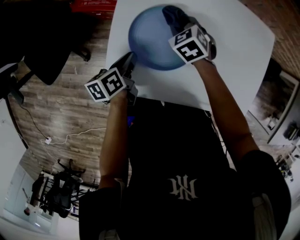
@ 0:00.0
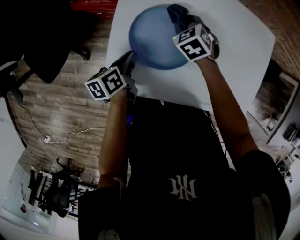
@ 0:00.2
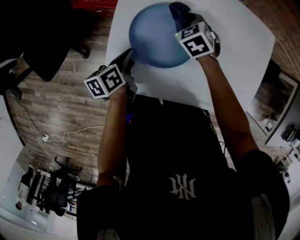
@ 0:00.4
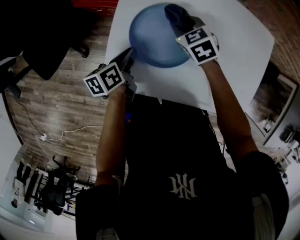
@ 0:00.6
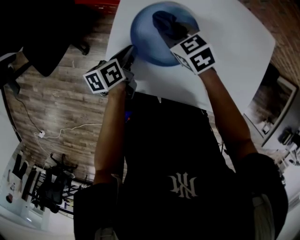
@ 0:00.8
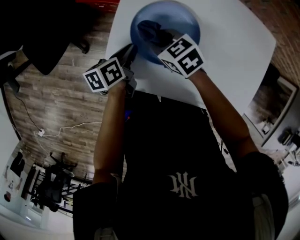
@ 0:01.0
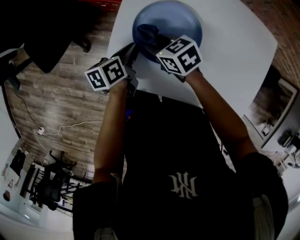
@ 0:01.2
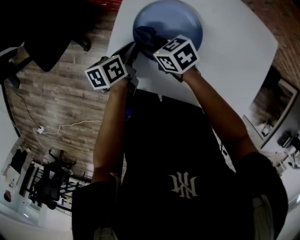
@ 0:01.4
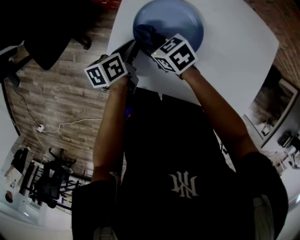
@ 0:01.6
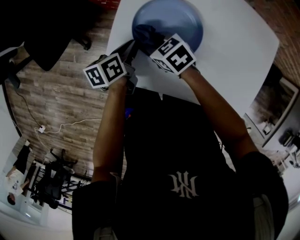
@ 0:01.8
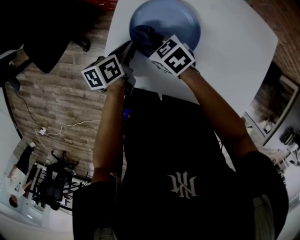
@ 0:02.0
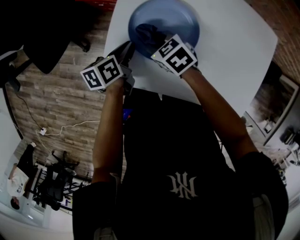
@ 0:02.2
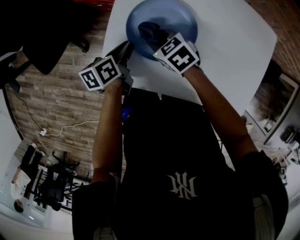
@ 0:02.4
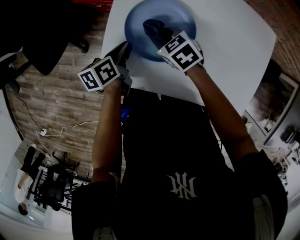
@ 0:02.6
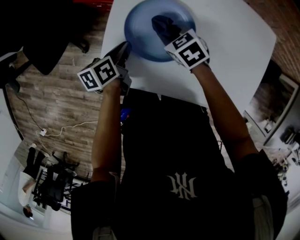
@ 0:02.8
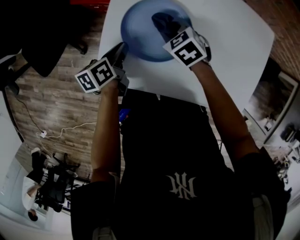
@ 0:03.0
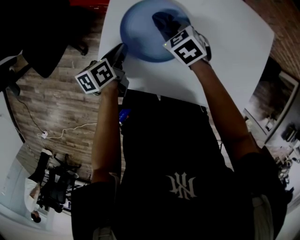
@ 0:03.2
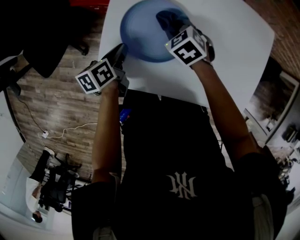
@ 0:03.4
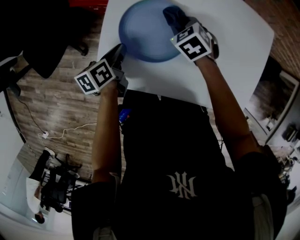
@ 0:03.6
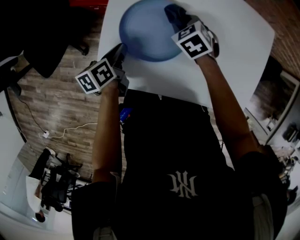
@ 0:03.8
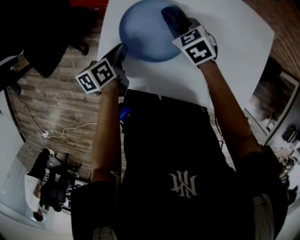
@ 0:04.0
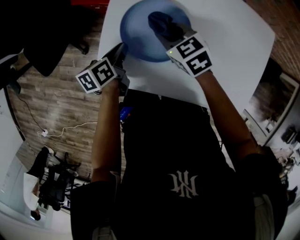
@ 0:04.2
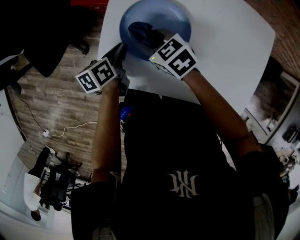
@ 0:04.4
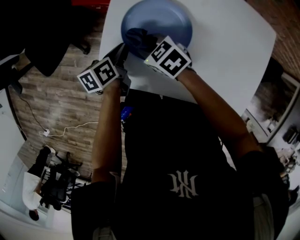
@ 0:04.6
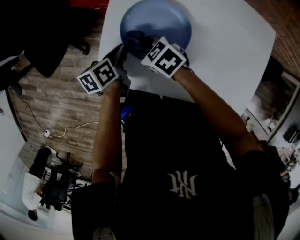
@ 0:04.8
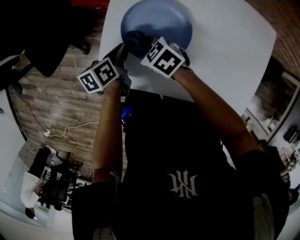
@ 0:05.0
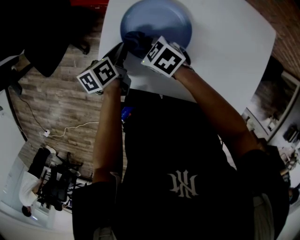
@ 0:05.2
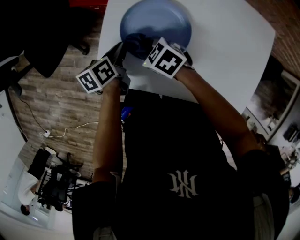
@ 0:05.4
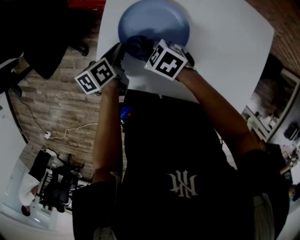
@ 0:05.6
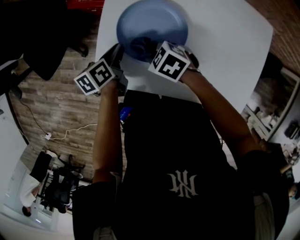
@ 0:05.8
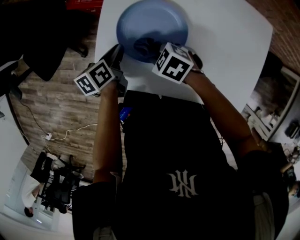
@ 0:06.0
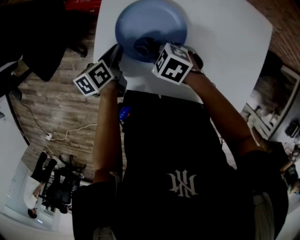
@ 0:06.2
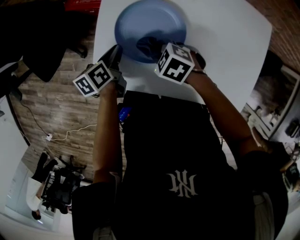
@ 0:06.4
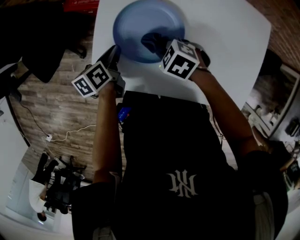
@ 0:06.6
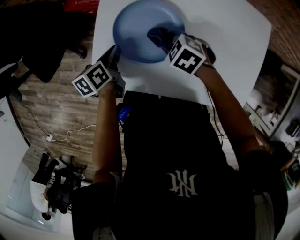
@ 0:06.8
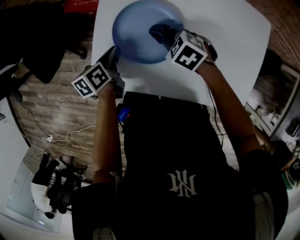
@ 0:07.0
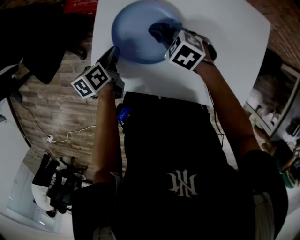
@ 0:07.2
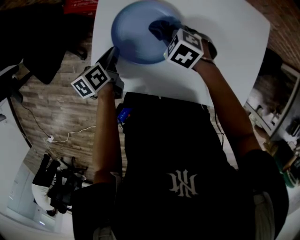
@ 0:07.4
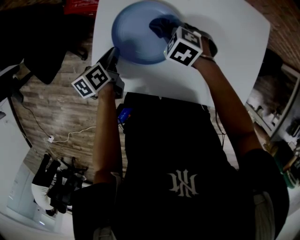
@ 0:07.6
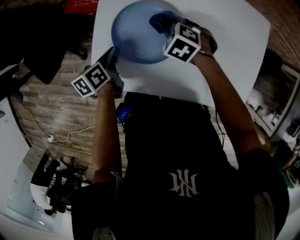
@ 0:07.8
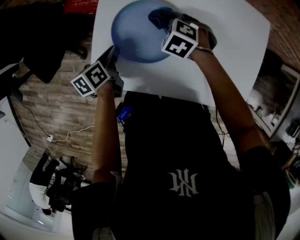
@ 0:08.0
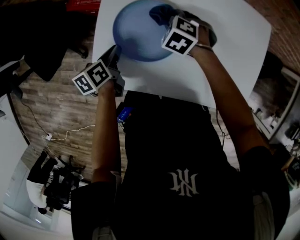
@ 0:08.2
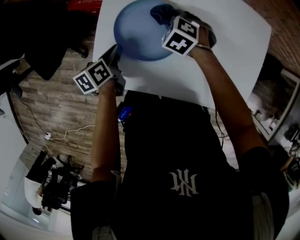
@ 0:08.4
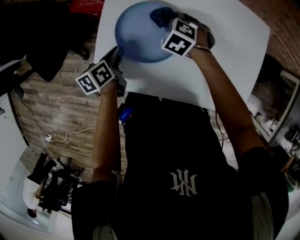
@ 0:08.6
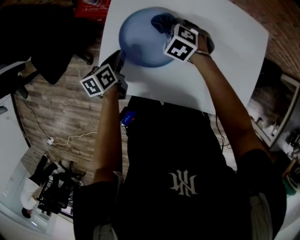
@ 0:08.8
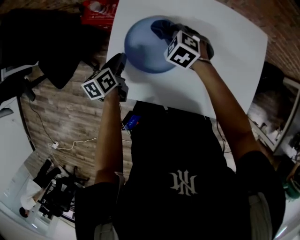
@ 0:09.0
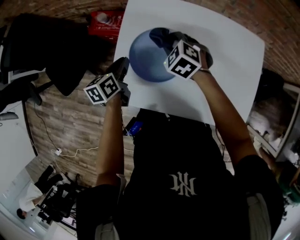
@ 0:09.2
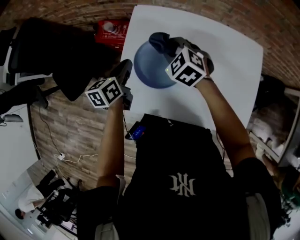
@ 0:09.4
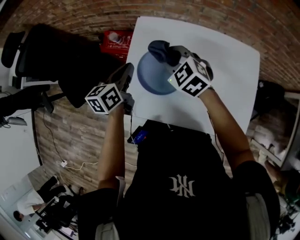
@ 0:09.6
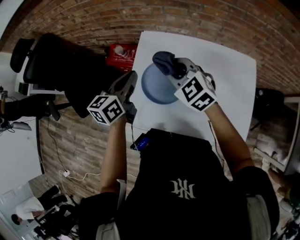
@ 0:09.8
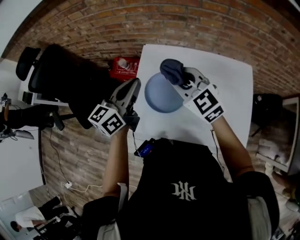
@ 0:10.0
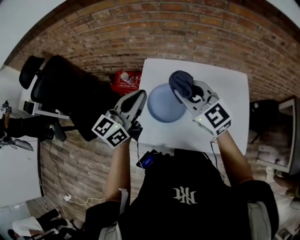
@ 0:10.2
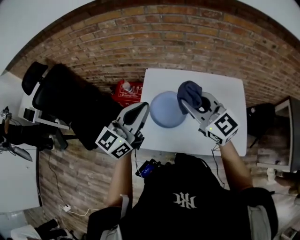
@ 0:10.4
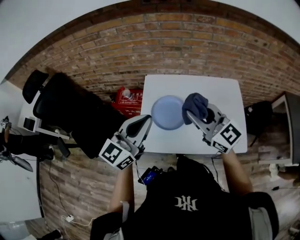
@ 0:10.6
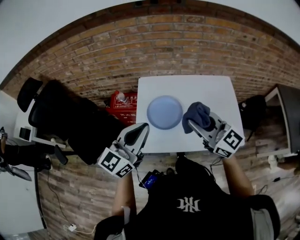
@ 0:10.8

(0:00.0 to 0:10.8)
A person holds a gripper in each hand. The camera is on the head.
0:00.0 - 0:01.6: The right gripper moves roughly 20 cm, and swivels roughly 40 degrees.
0:01.6 - 0:03.0: The right gripper travels to the right by about 10 cm, and rotates roughly 20 degrees.
0:03.0 - 0:04.6: The right gripper heads to the left, covering approximately 10 cm.
0:04.6 - 0:06.2: The right gripper is displaced backward by roughly 5 cm.
0:06.2 - 0:07.8: The right gripper is displaced to the right and forward by some 10 cm, and swivels some 20 degrees.
0:07.8 - 0:09.2: Both grippers travel together upward, approximately 10 cm.
0:09.2 - 0:10.8: The grippers both shift upward and backward by approximately 40 cm. The left gripper points its fingers some 40 degrees further upward. The right gripper angles its fingers upward, by approximately 50 degrees.

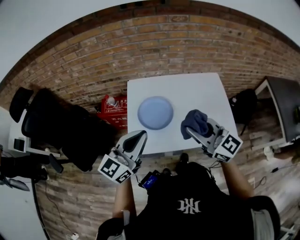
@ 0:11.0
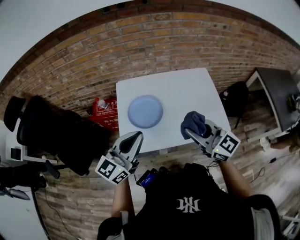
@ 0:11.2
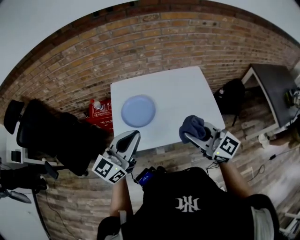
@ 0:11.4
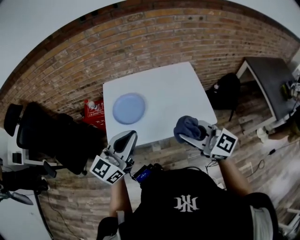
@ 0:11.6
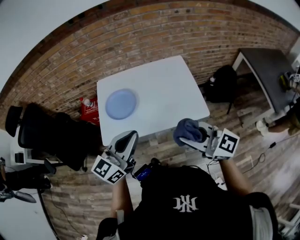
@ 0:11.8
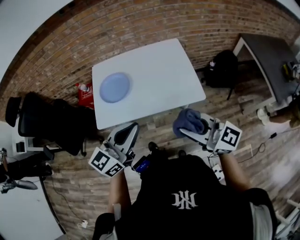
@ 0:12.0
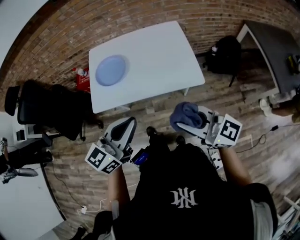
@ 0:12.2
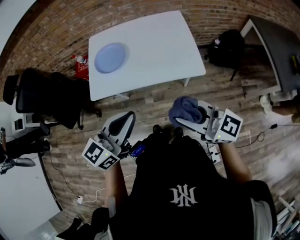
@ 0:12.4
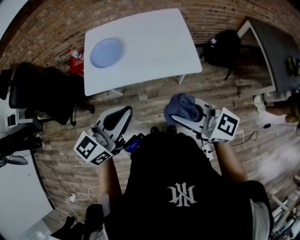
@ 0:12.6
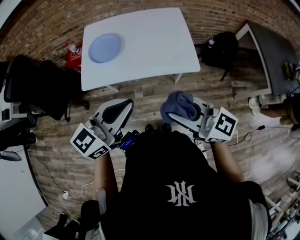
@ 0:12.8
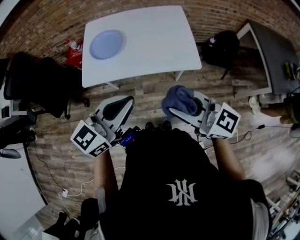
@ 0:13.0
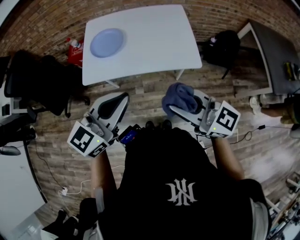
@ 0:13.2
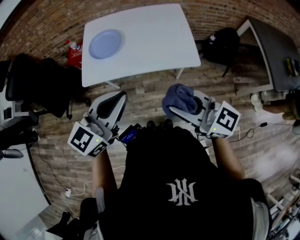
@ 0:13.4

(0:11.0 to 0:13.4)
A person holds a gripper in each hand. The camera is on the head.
0:11.0 - 0:12.2: The left gripper travels to the right and backward by about 30 cm; the right gripper shifts approximately 35 cm backward and to the right.
0:12.2 - 0:13.4: The grippers move only a little.

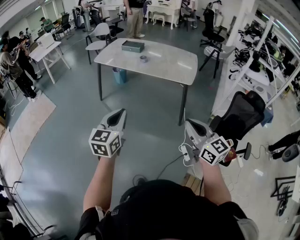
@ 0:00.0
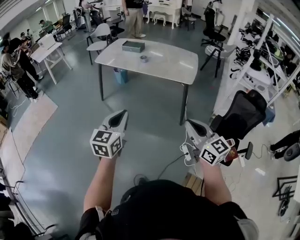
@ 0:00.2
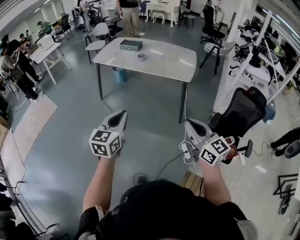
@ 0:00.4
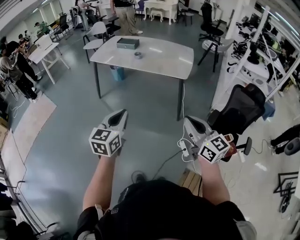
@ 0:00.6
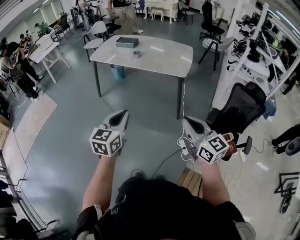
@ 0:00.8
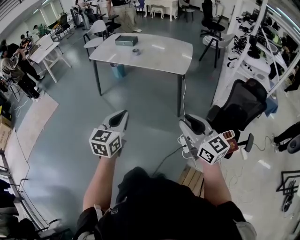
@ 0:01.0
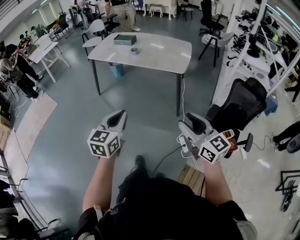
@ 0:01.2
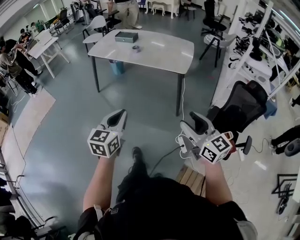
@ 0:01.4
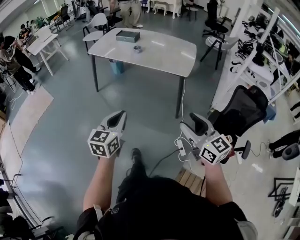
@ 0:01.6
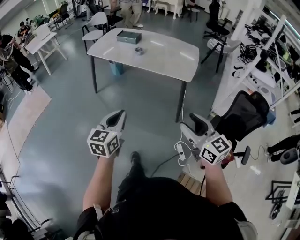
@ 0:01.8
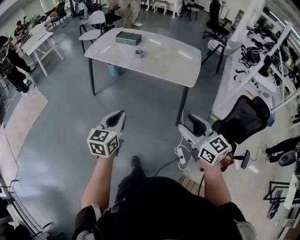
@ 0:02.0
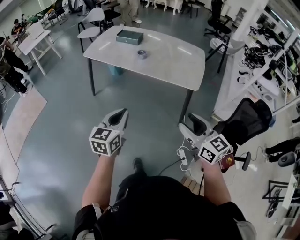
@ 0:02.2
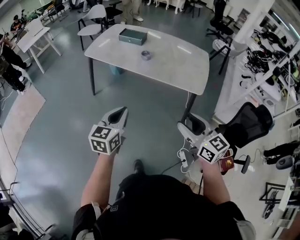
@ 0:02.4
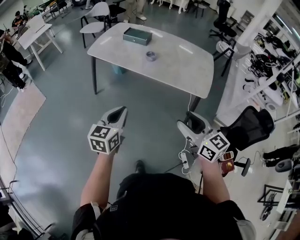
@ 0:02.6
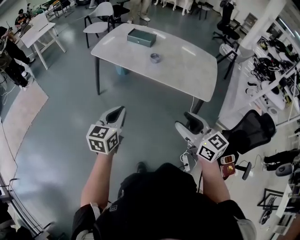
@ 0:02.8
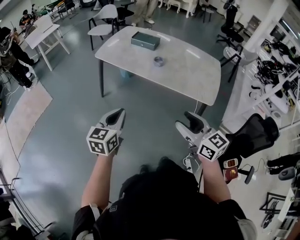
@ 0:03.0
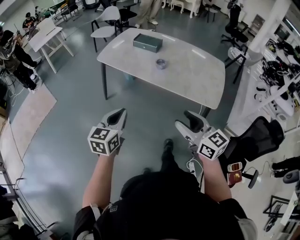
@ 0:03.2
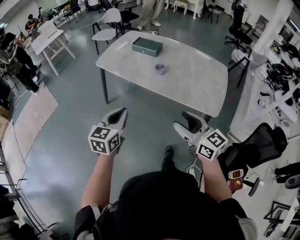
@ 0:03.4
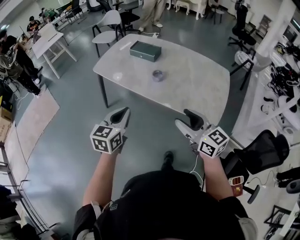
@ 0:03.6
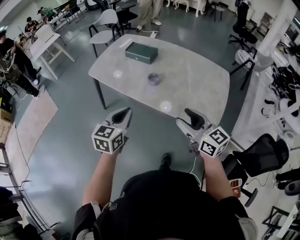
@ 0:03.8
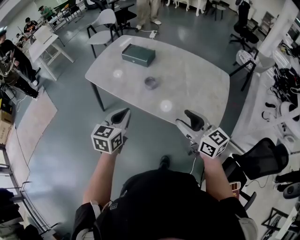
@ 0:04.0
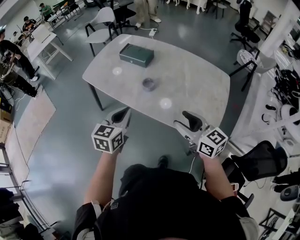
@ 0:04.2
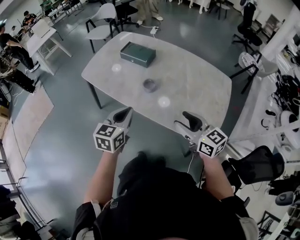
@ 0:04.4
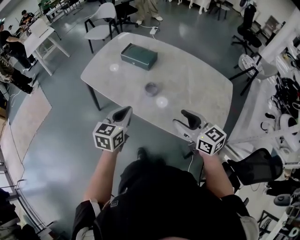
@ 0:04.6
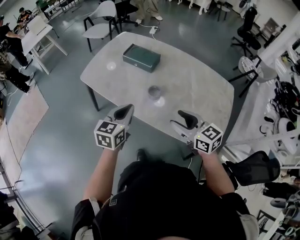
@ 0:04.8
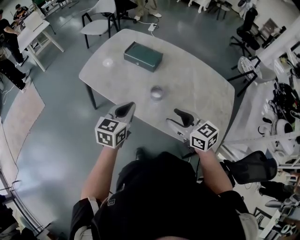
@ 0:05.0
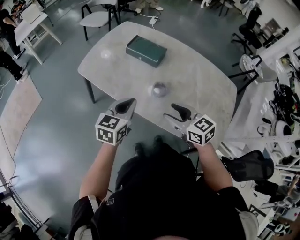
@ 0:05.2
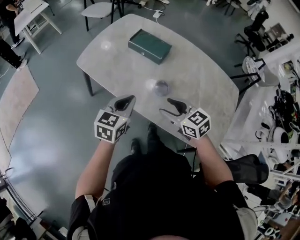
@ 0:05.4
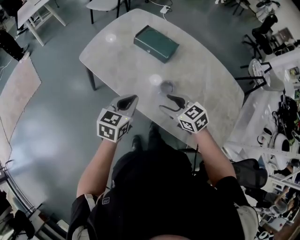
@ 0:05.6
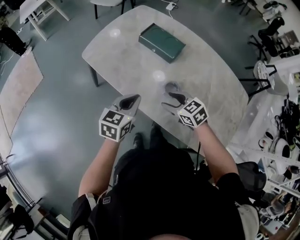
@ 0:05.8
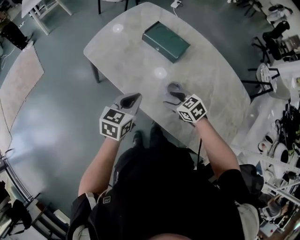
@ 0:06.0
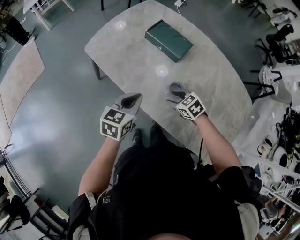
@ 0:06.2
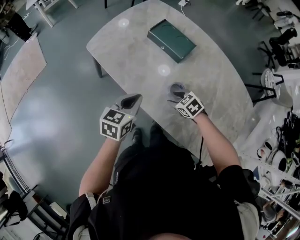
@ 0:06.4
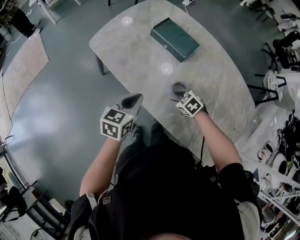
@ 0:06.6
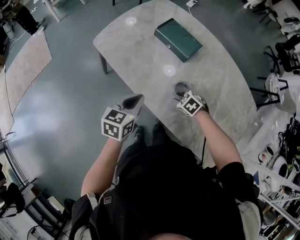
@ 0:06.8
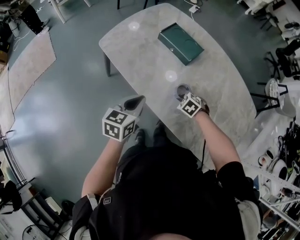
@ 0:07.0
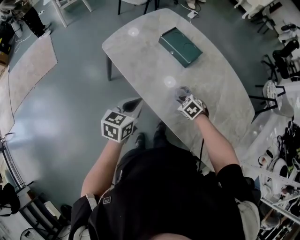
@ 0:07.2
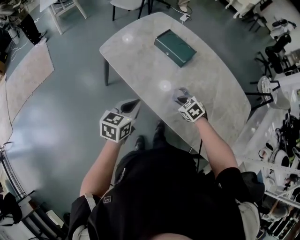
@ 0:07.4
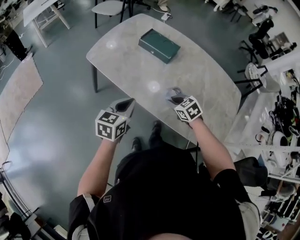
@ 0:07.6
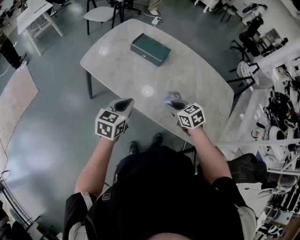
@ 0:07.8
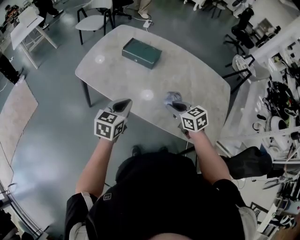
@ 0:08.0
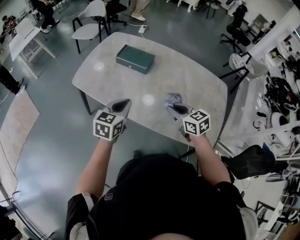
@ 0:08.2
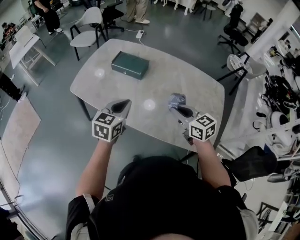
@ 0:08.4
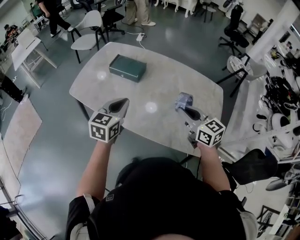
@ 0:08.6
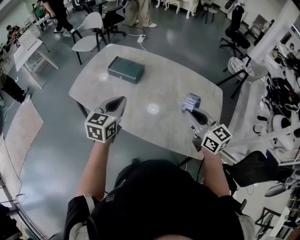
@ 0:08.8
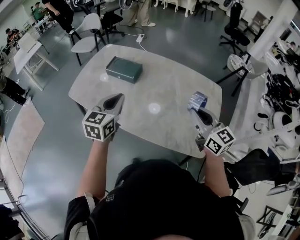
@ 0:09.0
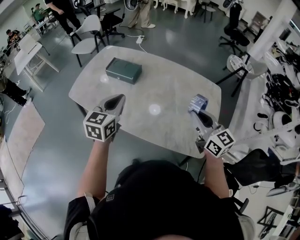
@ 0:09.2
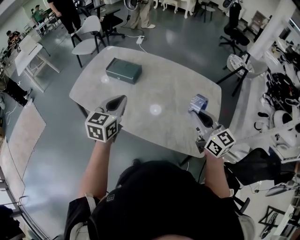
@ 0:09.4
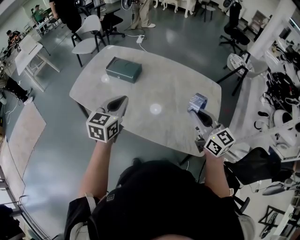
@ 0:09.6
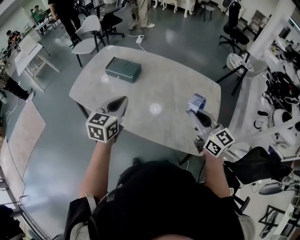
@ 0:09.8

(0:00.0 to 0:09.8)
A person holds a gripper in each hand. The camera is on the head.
0:00.0 - 0:01.4: The grippers both shift to the right by approximately 10 cm. The right gripper opens up.
0:01.4 - 0:02.8: The two grippers travel together, forward and to the left, about 50 cm.
0:02.8 - 0:04.2: The pair of grippers is taken forward and to the right, approximately 40 cm.
0:04.2 - 0:05.6: The left gripper travels forward, downward and to the left by about 30 cm. Meanwhile the right gripper moves forward, to the left and downward, some 40 cm, and swivels roughly 40 degrees.
0:05.6 - 0:07.0: The right gripper heads downward, covering some 15 cm, angles its fingers downward, by some 40 degrees, and closes its fingers.
0:07.0 - 0:08.4: The right gripper moves upward, backward and to the right, roughly 35 cm, and points its fingers about 50 degrees further upward. Meanwhile the left gripper travels to the right, upward and backward by some 15 cm, and swivels about 30 degrees.
0:08.4 - 0:09.8: The left gripper travels to the right and upward by some 10 cm. The right gripper heads to the right and upward, covering roughly 20 cm, and changes its angle by approximately 20 degrees.
